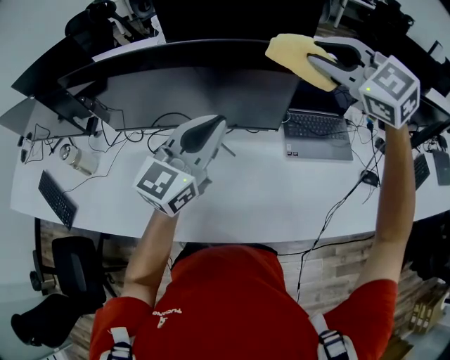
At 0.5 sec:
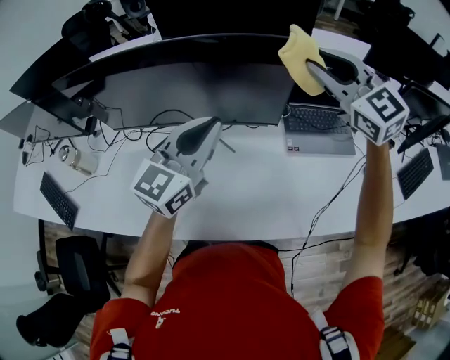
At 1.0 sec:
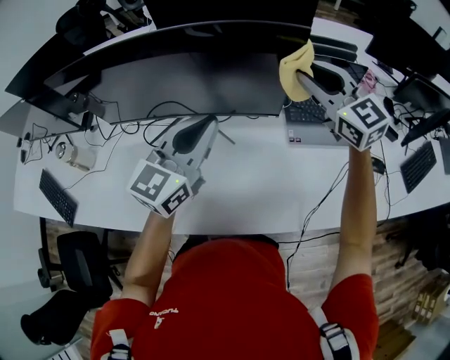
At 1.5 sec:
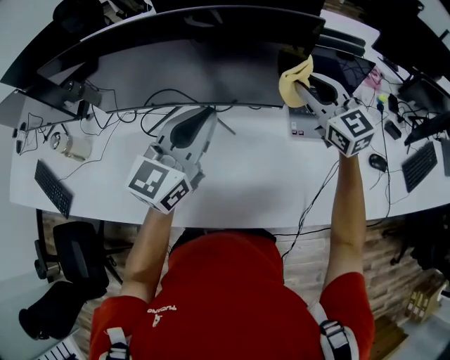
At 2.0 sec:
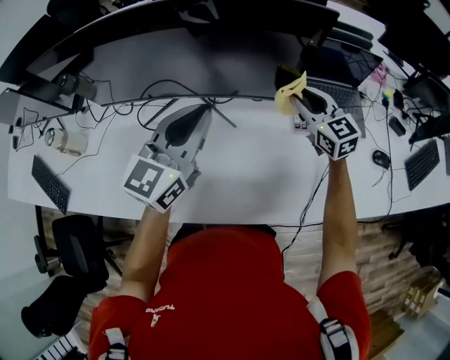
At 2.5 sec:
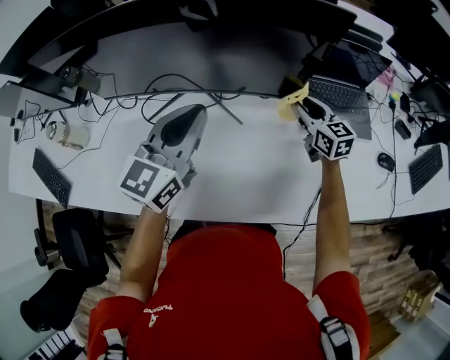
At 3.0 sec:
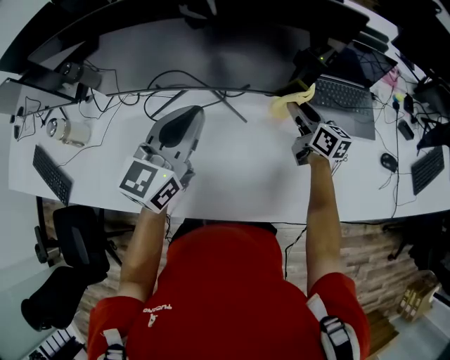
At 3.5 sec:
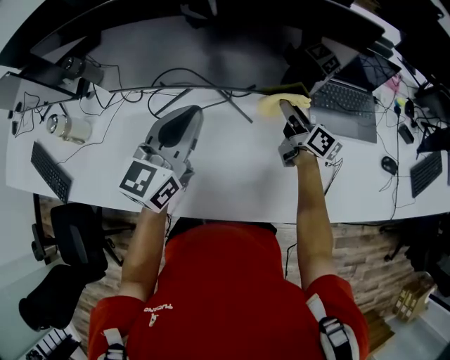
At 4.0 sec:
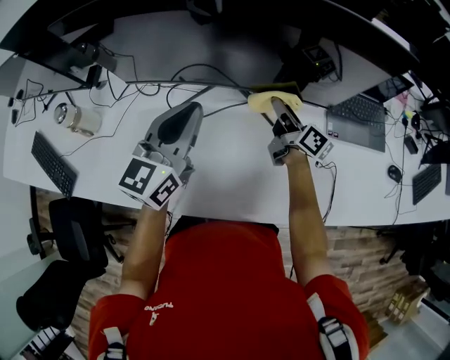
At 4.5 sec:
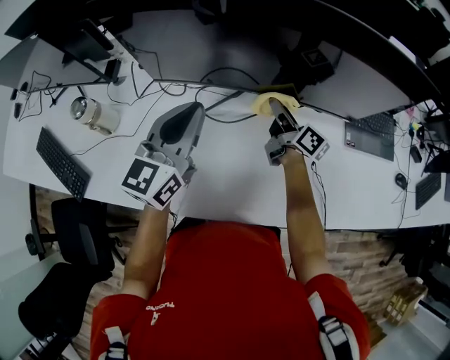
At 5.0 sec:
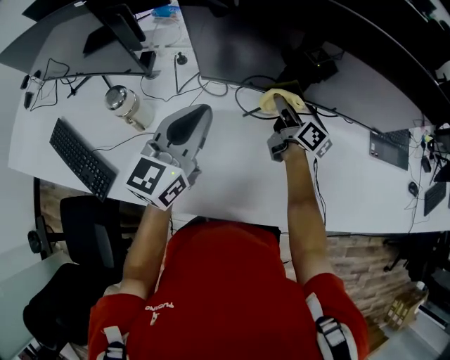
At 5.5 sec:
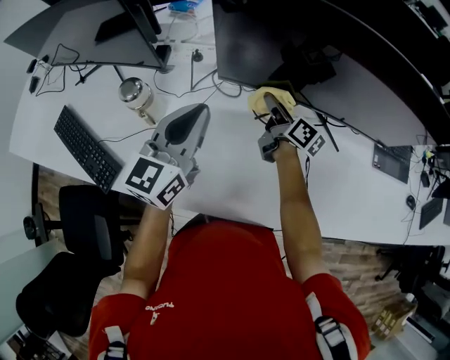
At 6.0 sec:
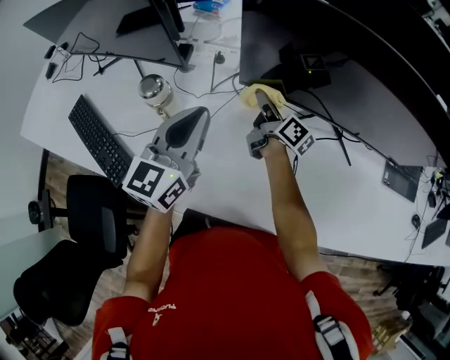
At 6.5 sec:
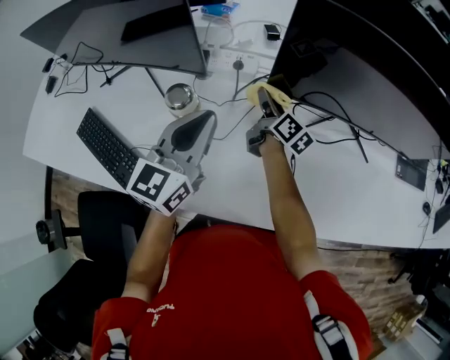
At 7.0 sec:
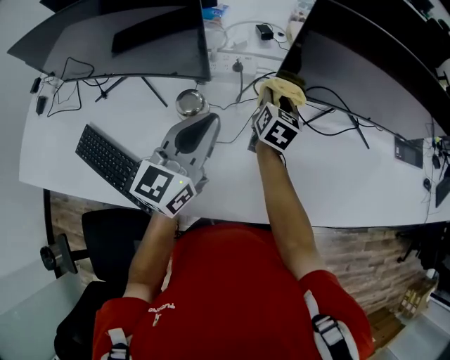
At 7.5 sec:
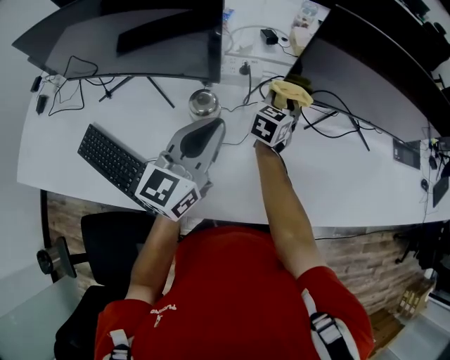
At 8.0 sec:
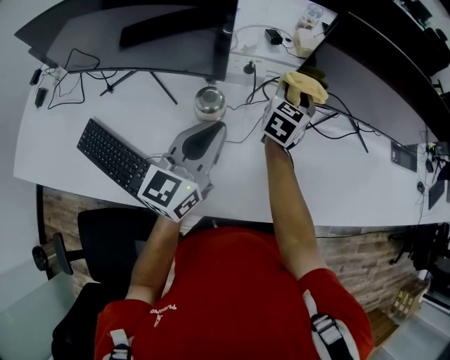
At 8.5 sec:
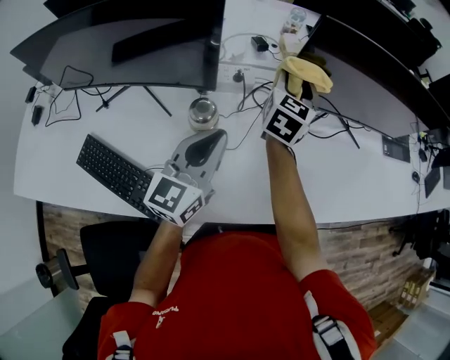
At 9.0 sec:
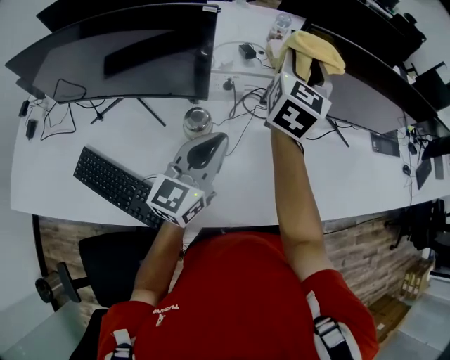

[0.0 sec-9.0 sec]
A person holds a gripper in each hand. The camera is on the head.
0.0 sec to 2.0 sec: The left gripper travels downward by about 5 cm. Meanwhile the right gripper shifts roughly 30 cm downward, and swivels some 30 degrees.
2.0 sec to 4.5 sec: The two grippers go approximately 25 cm to the left. The right gripper rolls clockwise, seen from behind, by some 60 degrees.
4.5 sec to 7.0 sec: The left gripper ends up about 30 cm from where it was, while the right gripper moves approximately 35 cm, and changes its angle by some 50 degrees.
7.0 sec to 9.0 sec: The right gripper travels upward by approximately 25 cm, and swivels approximately 30 degrees.

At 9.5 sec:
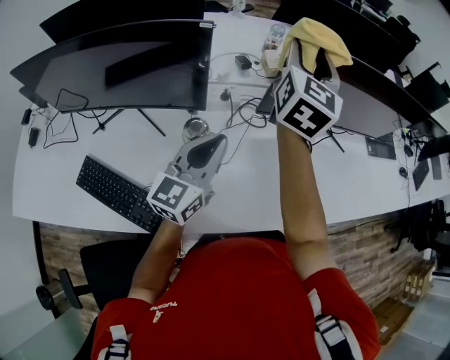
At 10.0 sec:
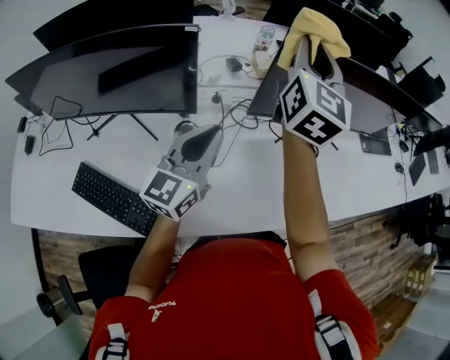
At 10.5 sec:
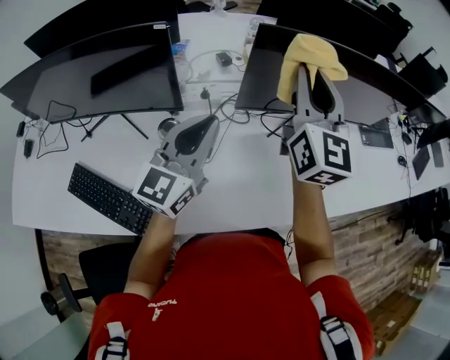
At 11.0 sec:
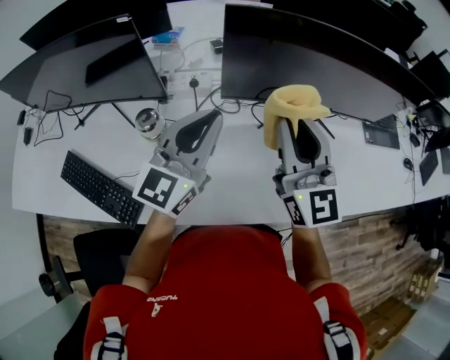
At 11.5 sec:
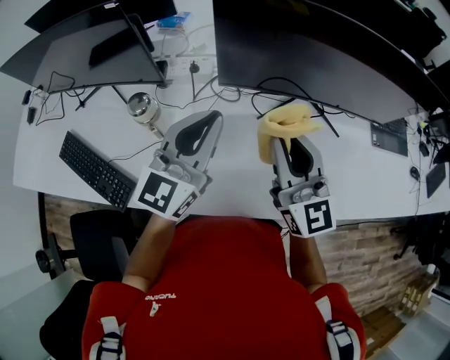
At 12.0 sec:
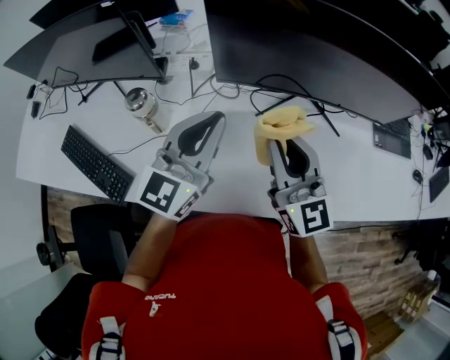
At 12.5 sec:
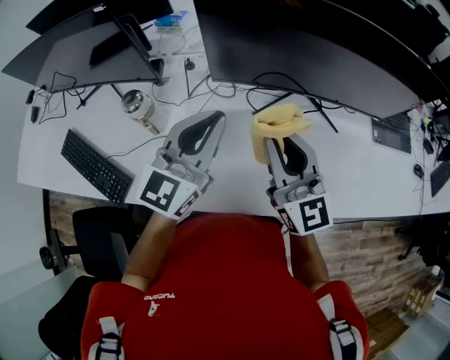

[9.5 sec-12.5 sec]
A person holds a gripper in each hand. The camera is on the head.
9.5 sec to 11.0 sec: The left gripper heads to the right, covering about 10 cm, while the right gripper moves to the right, backward and downward, approximately 20 cm, swivels some 30 degrees, and closes its fingers.
11.0 sec to 12.5 sec: The left gripper moves to the right, approximately 5 cm, while the right gripper heads downward, covering roughly 5 cm.

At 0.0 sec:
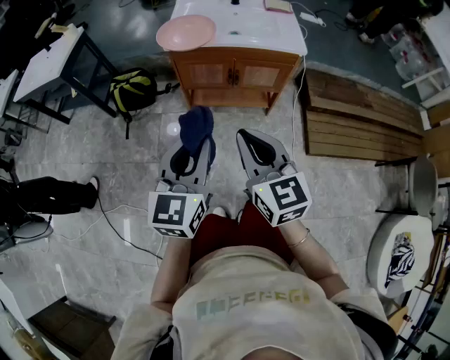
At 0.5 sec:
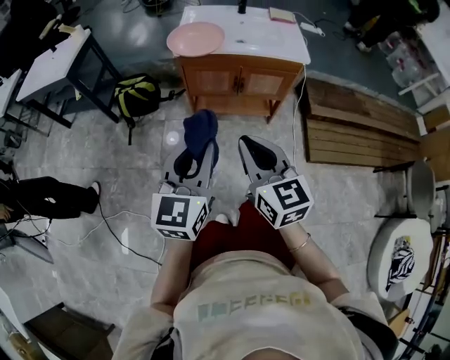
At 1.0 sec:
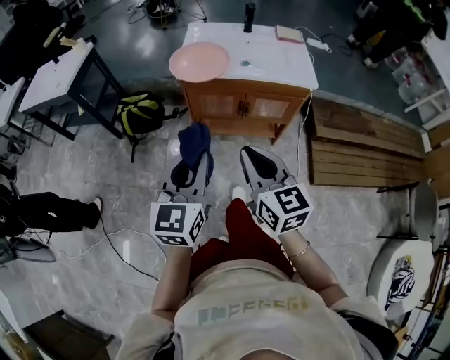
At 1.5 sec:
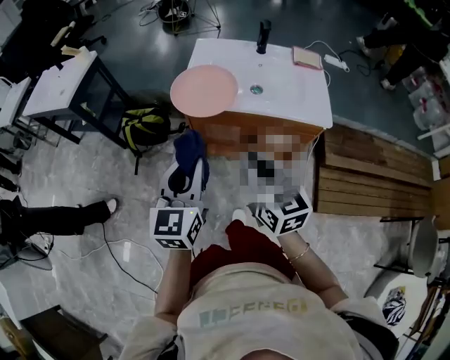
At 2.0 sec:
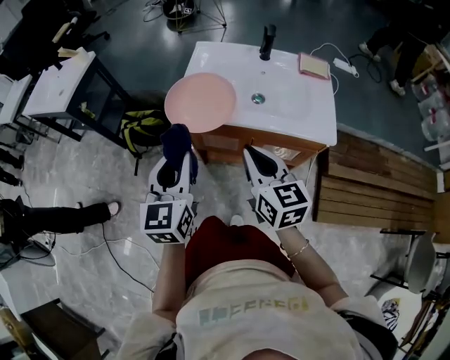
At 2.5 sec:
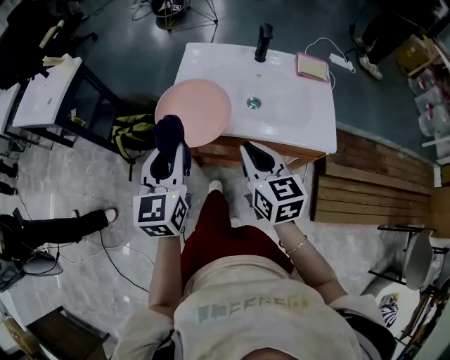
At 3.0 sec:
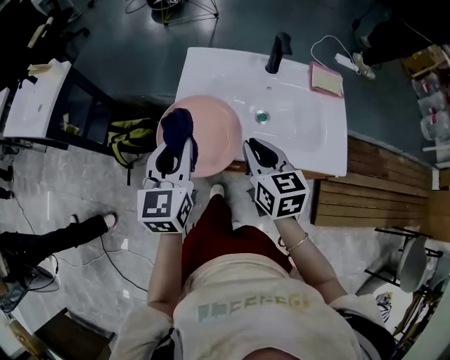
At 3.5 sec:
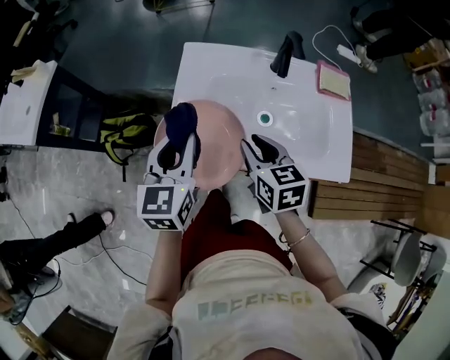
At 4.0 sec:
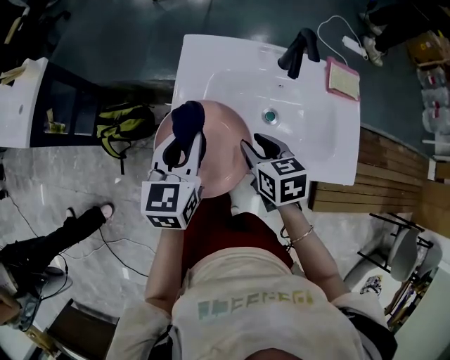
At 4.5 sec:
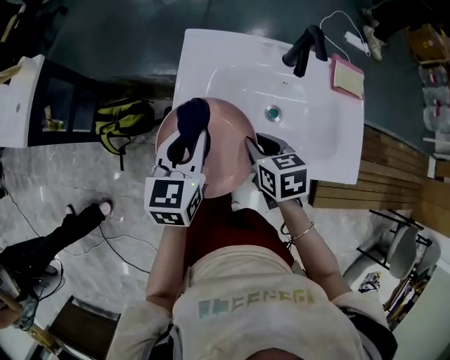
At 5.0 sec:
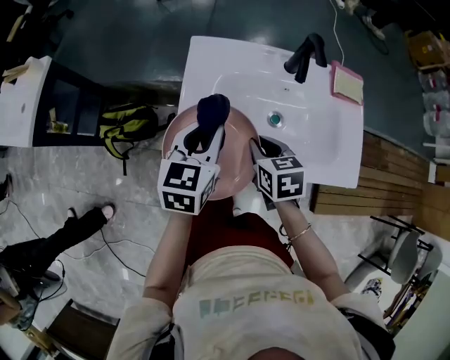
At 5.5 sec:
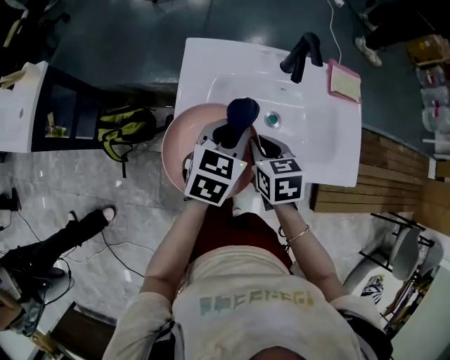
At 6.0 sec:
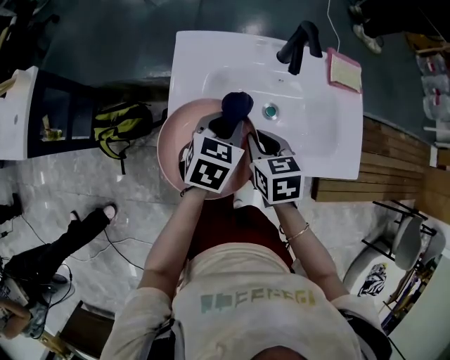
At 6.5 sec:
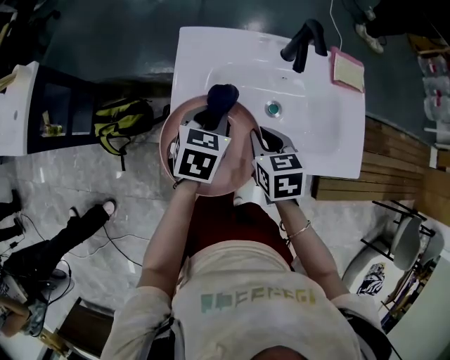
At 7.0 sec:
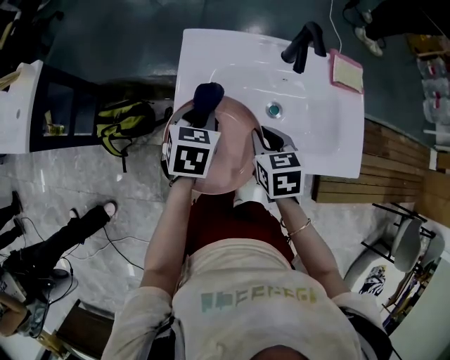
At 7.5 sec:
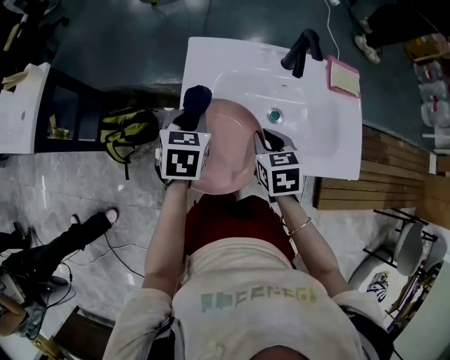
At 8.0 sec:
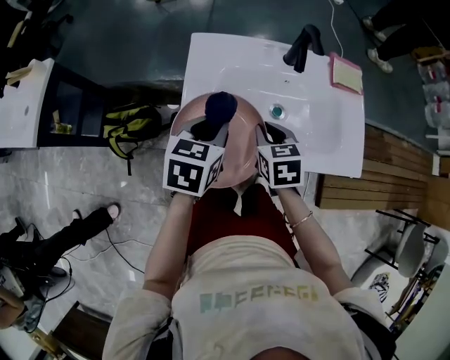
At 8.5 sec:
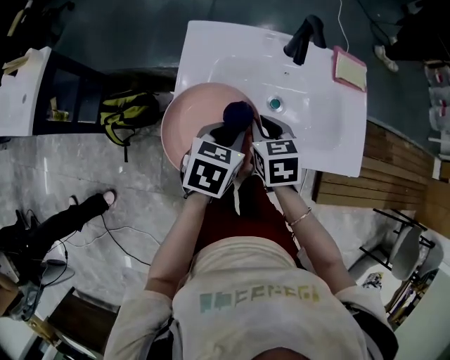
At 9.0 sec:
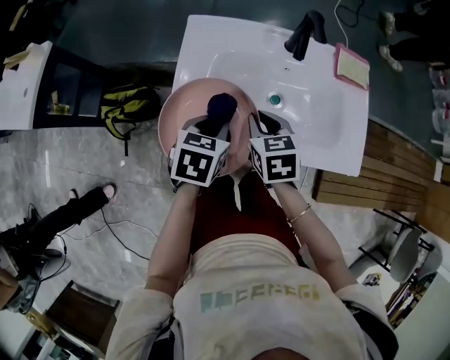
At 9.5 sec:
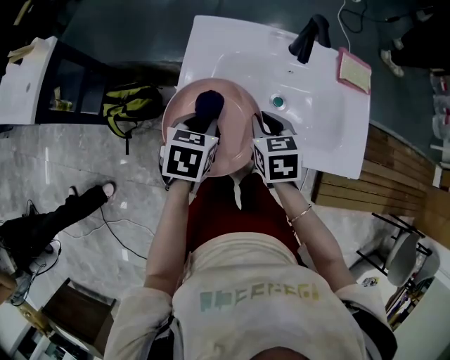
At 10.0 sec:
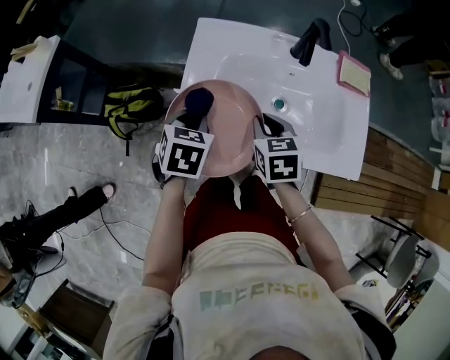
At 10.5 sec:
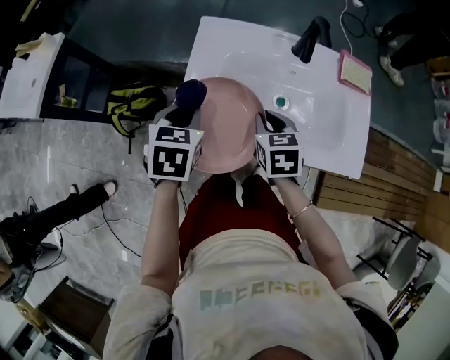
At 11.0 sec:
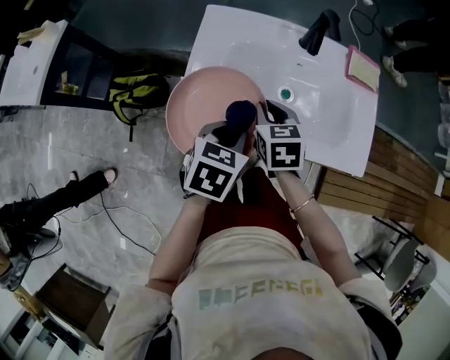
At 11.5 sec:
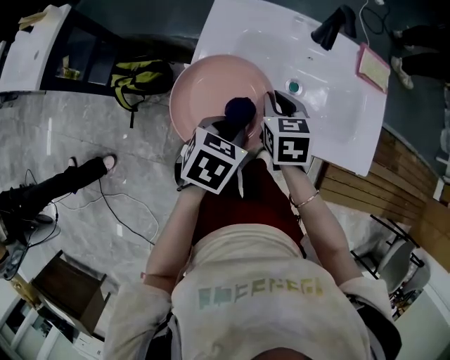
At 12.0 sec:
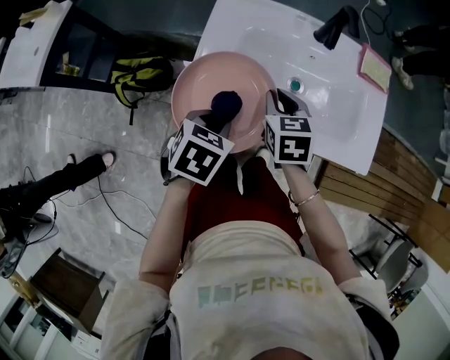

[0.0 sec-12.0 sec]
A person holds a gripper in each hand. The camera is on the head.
0.0 sec to 2.0 sec: The grippers both shift forward by about 35 cm.
2.0 sec to 4.0 sec: The left gripper goes some 30 cm forward; the right gripper is displaced forward and downward by approximately 30 cm, swivels about 30 degrees, and opens its fingers.
4.0 sec to 6.0 sec: The left gripper moves to the right and downward, roughly 10 cm, and turns by roughly 30 degrees.
6.0 sec to 8.0 sec: The left gripper heads to the left, covering about 5 cm.
8.0 sec to 10.0 sec: The left gripper is displaced downward by some 5 cm.
10.0 sec to 12.0 sec: The left gripper goes about 10 cm backward.

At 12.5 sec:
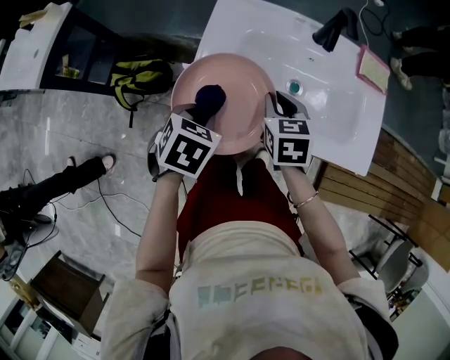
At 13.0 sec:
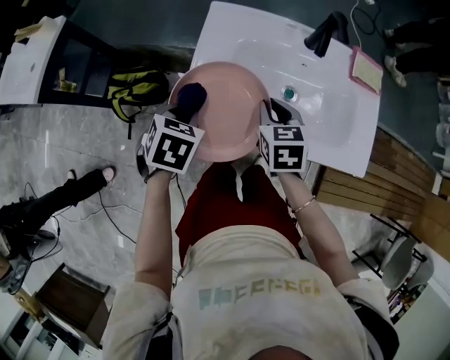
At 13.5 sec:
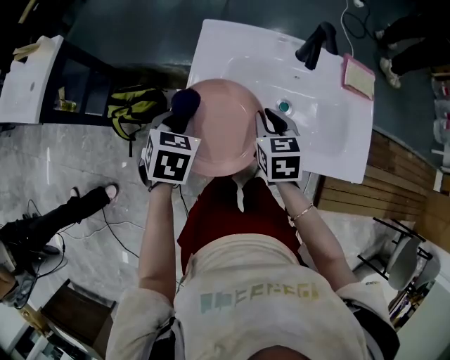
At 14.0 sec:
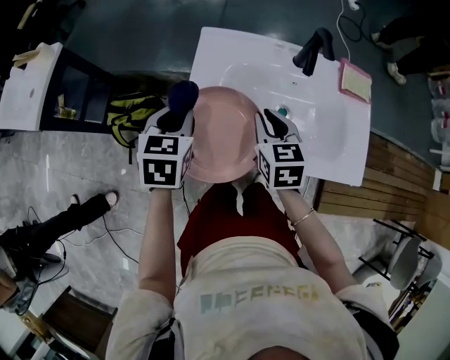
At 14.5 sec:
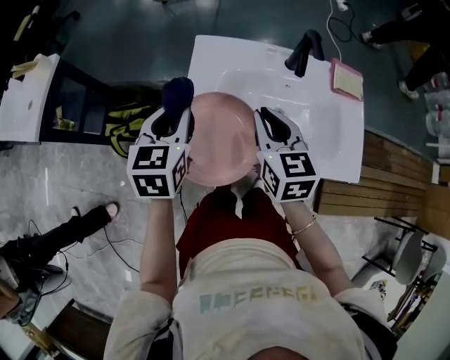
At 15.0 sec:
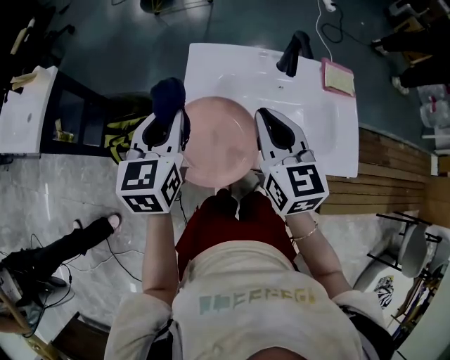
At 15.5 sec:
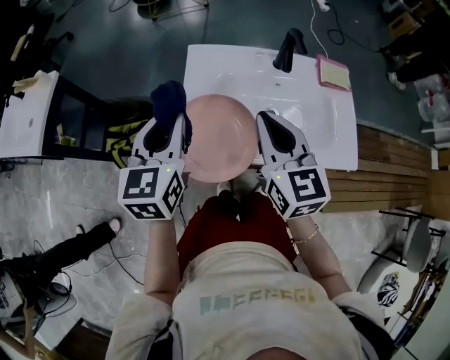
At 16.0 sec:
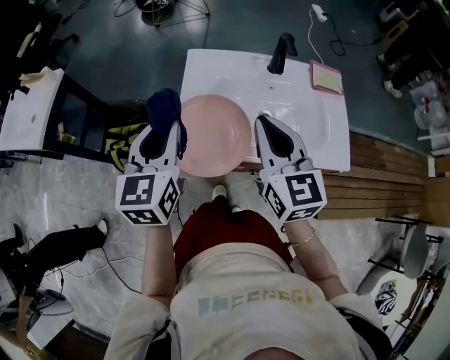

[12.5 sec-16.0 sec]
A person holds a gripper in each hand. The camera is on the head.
12.5 sec to 14.5 sec: The left gripper goes some 15 cm upward and forward, and points its fingers roughly 30 degrees further upward. Meanwhile the right gripper travels upward by roughly 10 cm, and swivels some 20 degrees.
14.5 sec to 16.0 sec: The left gripper goes about 10 cm backward and upward. Meanwhile the right gripper shifts approximately 15 cm upward and backward.
